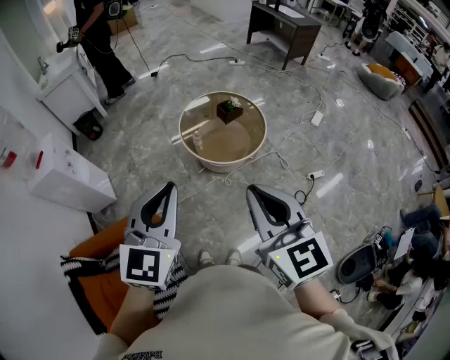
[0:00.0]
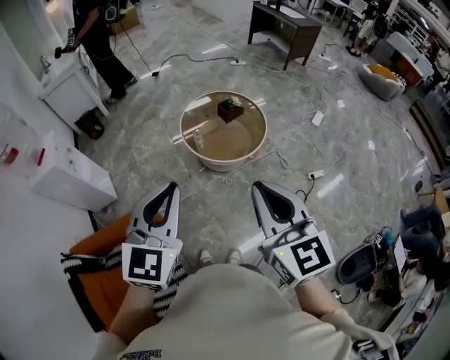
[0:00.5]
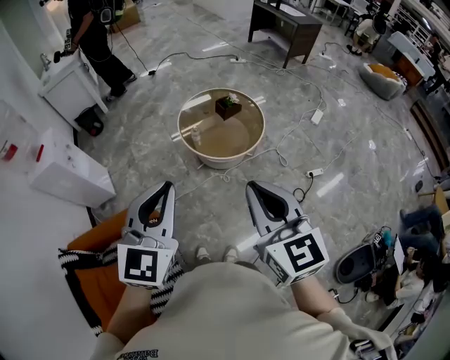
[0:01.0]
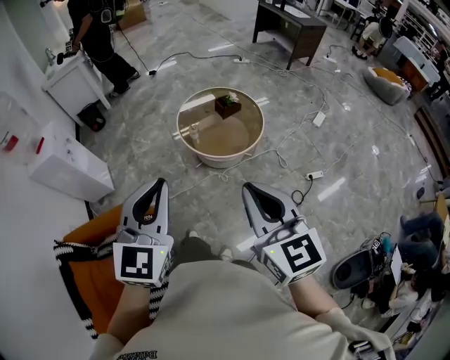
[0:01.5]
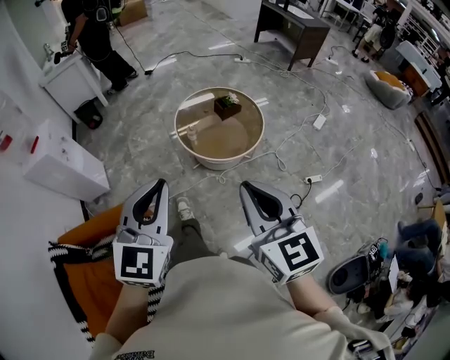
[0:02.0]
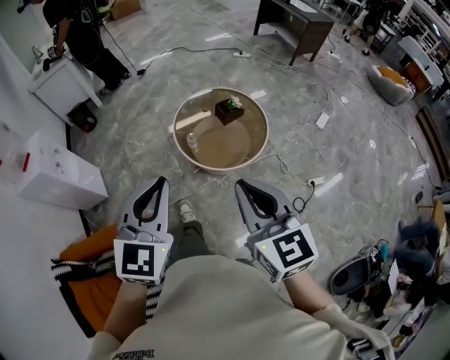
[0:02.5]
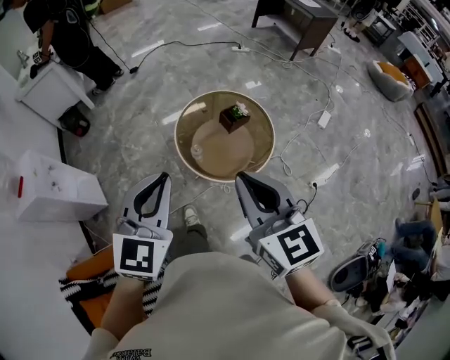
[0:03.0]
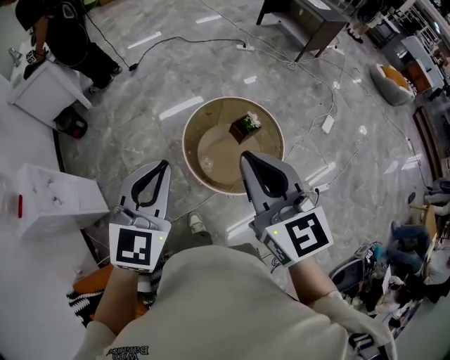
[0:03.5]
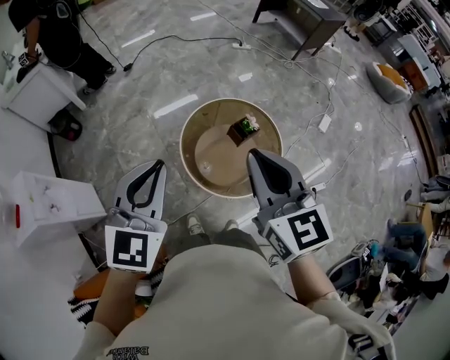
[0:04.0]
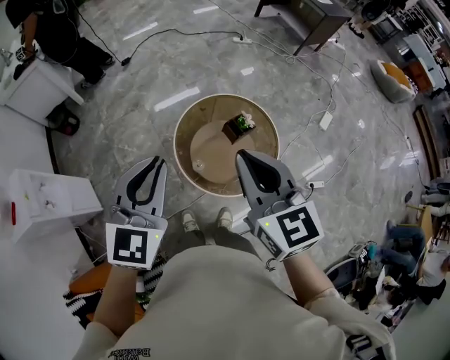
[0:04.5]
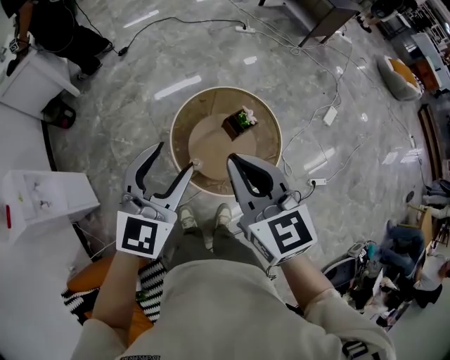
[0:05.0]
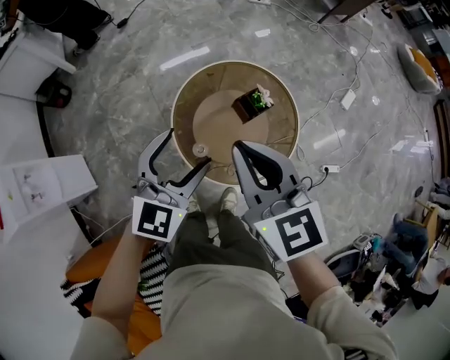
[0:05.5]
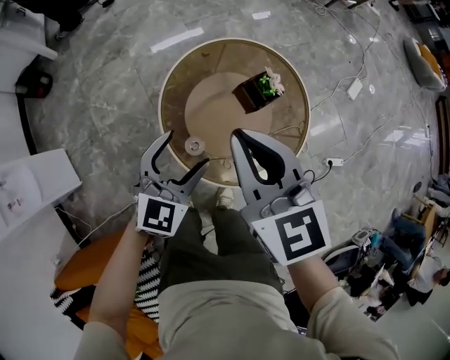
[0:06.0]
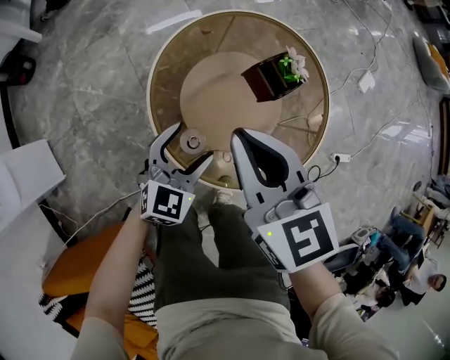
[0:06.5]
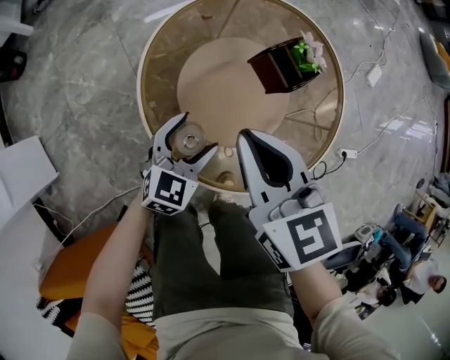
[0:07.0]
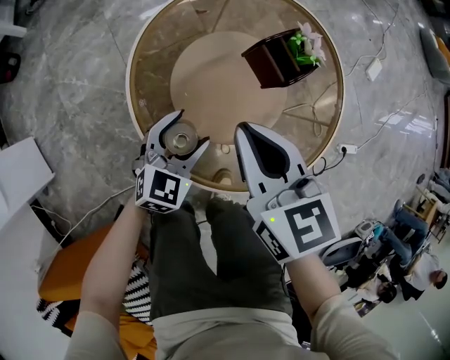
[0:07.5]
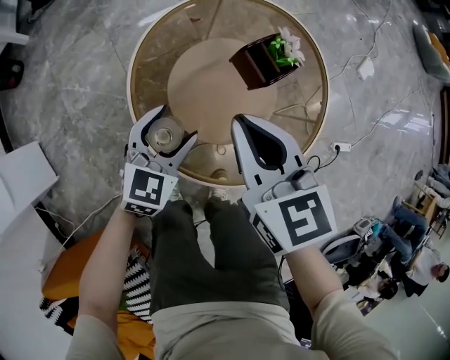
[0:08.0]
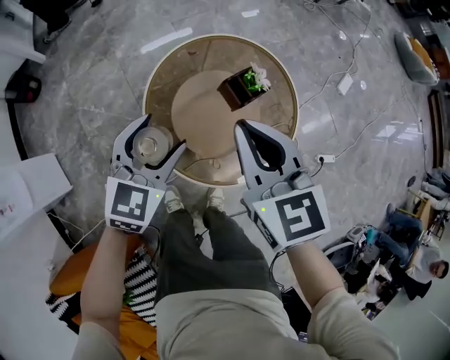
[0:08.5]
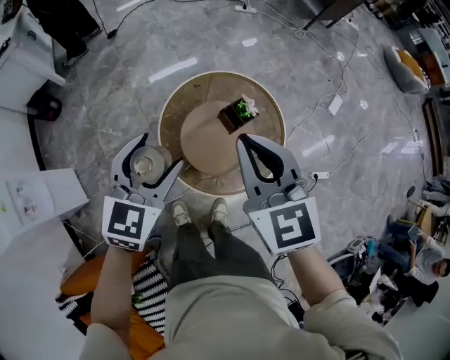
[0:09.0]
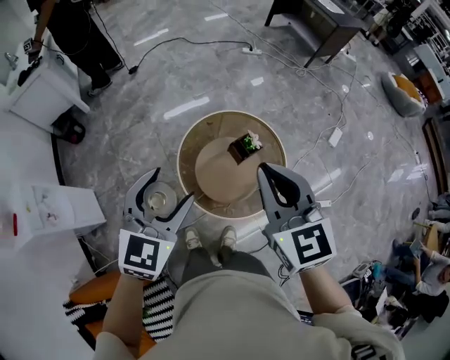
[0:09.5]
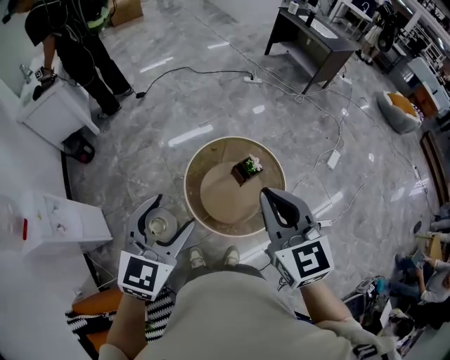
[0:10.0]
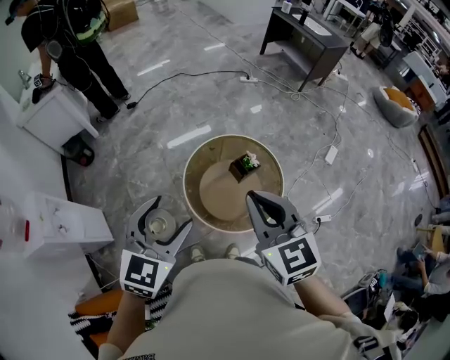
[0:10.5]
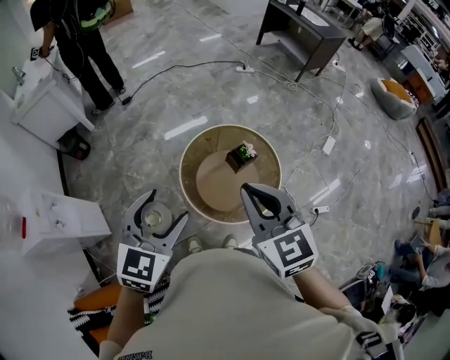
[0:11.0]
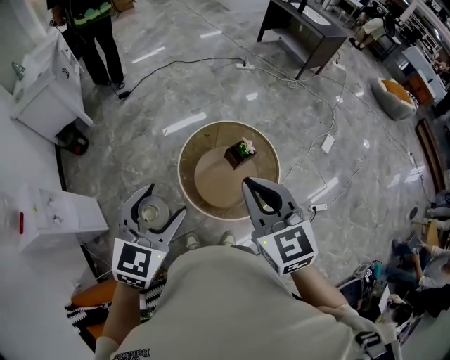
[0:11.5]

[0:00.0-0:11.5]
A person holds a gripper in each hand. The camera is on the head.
0:00.0 to 0:02.0: The left gripper changes place by about 5 cm. Meanwhile the right gripper heads to the right, covering about 5 cm.
0:02.0 to 0:04.0: Both grippers are carried forward, some 50 cm.
0:04.0 to 0:06.0: The right gripper travels downward and forward by about 35 cm, while the left gripper shifts roughly 40 cm downward, and opens.
0:06.0 to 0:07.5: Both grippers move downward, about 25 cm.
0:07.5 to 0:09.5: The two grippers go approximately 50 cm upward. The right gripper swivels roughly 20 degrees.
0:09.5 to 0:11.5: The grippers both shift backward by some 10 cm.

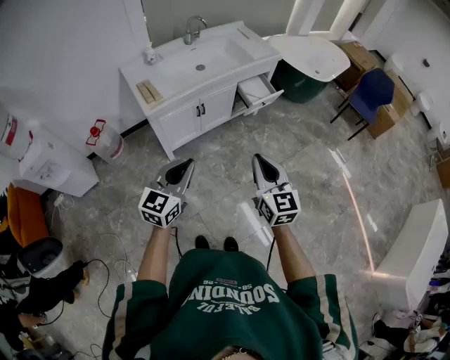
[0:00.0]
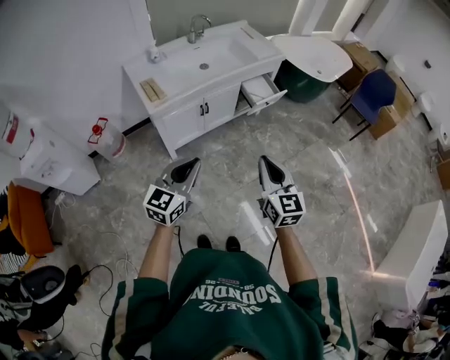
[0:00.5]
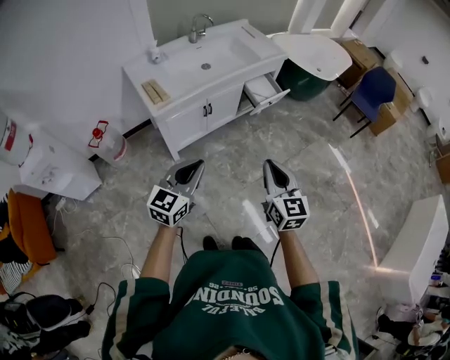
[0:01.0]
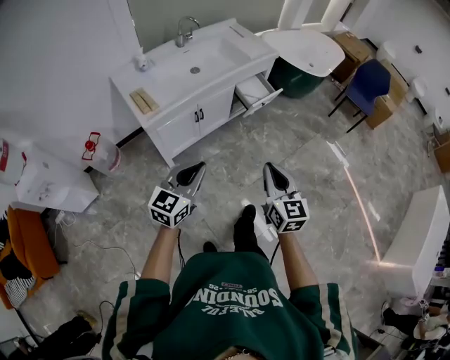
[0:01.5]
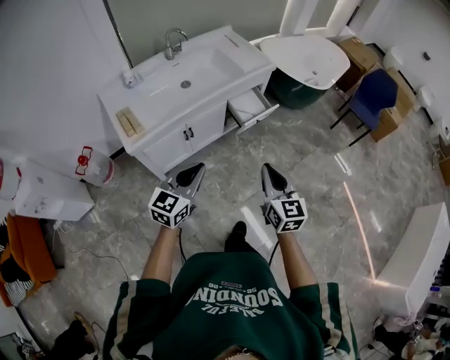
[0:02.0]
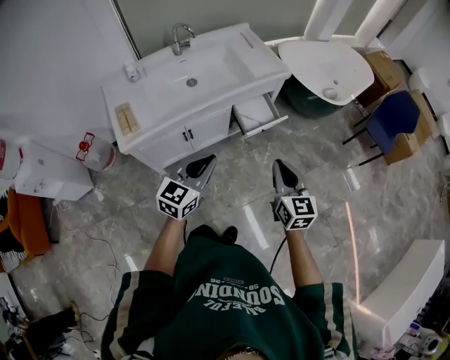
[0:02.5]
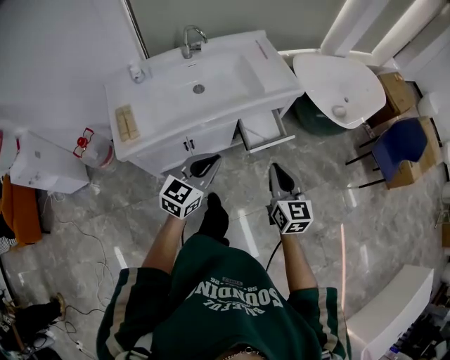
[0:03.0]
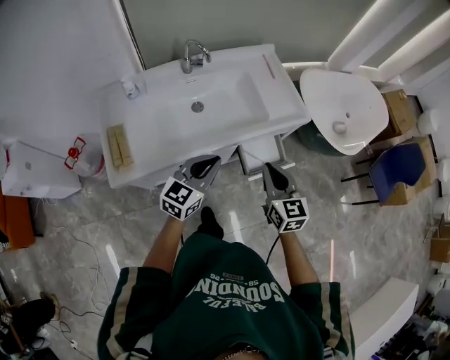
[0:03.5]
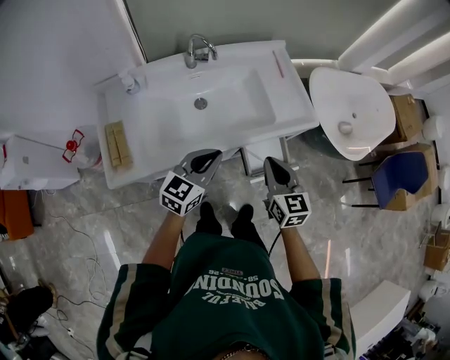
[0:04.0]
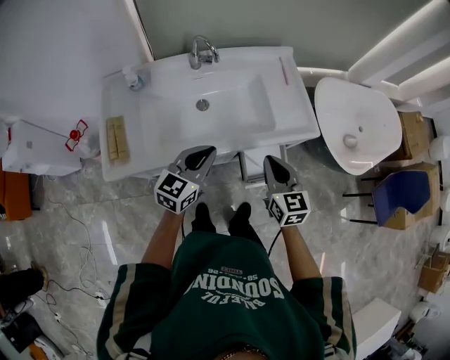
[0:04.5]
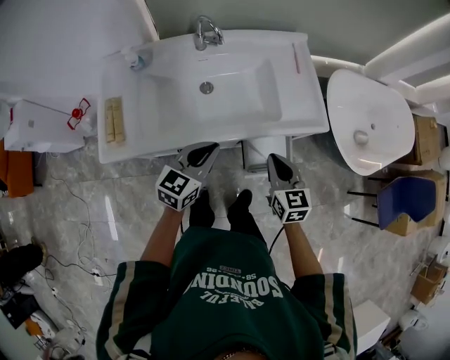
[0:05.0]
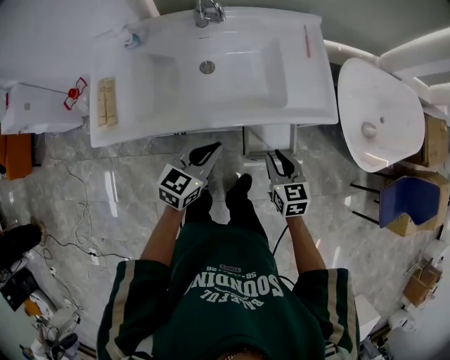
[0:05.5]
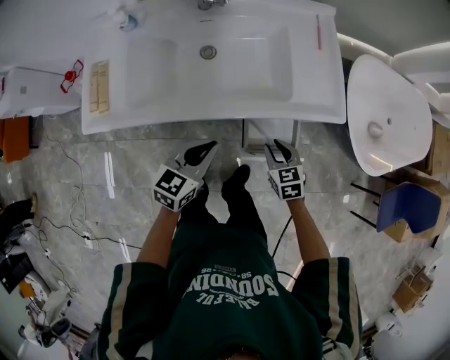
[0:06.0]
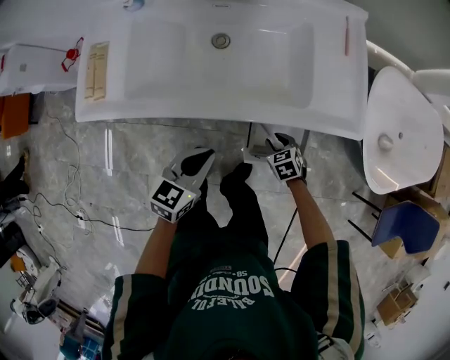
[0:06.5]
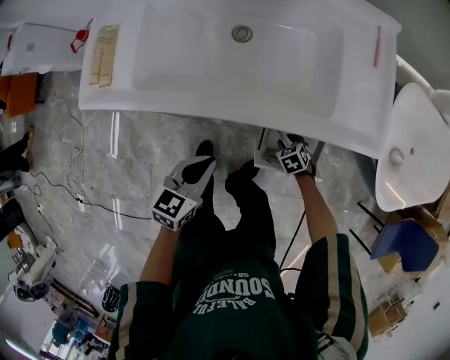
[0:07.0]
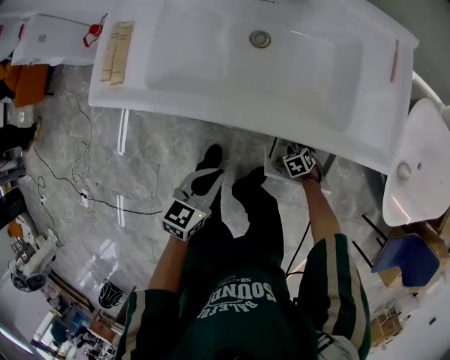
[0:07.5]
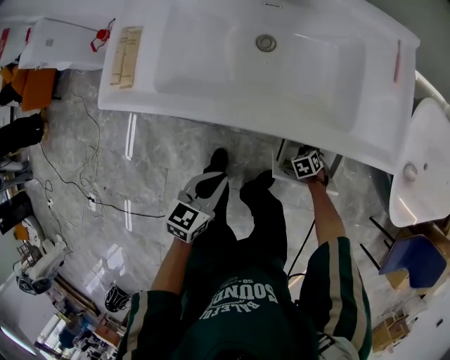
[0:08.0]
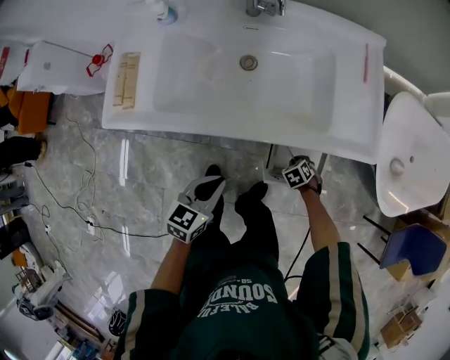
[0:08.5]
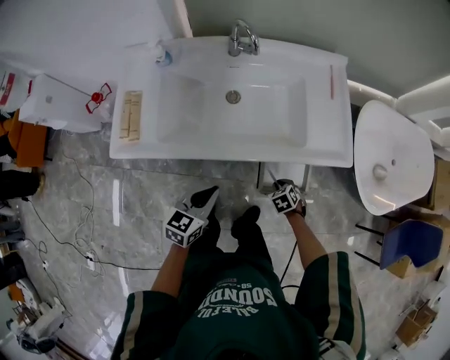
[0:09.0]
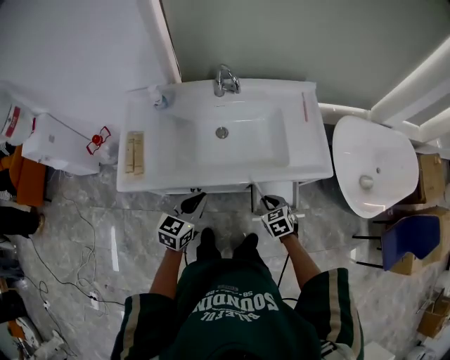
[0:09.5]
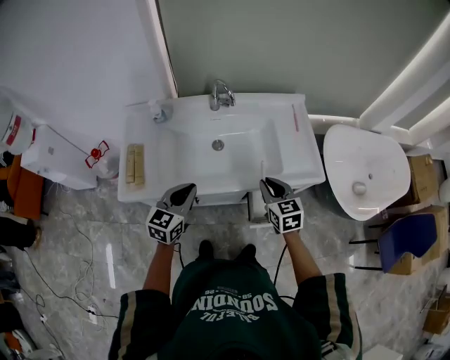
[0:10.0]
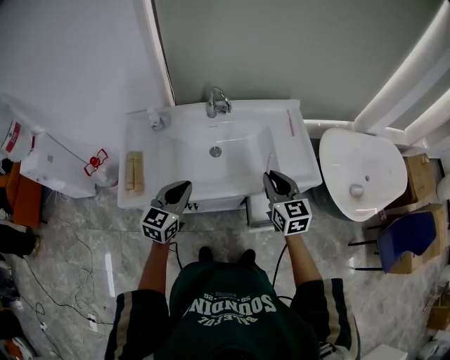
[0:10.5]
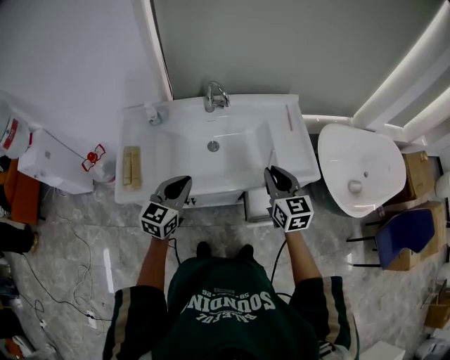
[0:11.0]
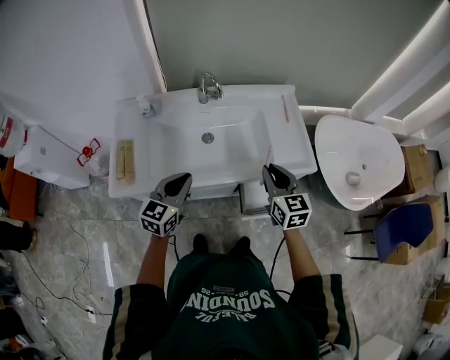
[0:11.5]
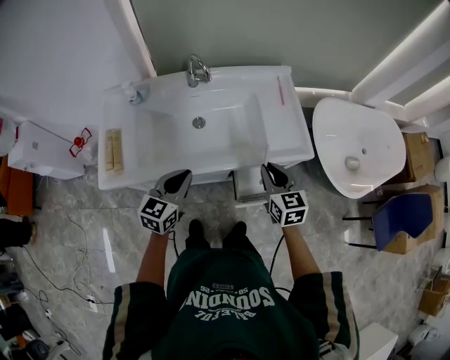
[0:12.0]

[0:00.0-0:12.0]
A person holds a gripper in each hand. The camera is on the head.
0:00.0 to 0:02.0: Both grippers move forward, approximately 20 cm.
0:02.0 to 0:04.0: The two grippers travel together, forward, approximately 40 cm. The right gripper rotates about 20 degrees.
0:04.0 to 0:06.0: The right gripper travels downward by some 25 cm, swivels about 40 degrees, and opens up; the left gripper goes roughly 15 cm downward and to the right, and turns by about 20 degrees.
0:06.0 to 0:08.0: The left gripper goes some 10 cm downward, while the right gripper goes about 30 cm downward, and points its fingers approximately 30 degrees further downward.
0:08.0 to 0:10.0: The right gripper is displaced upward by approximately 50 cm, and angles its fingers upward, by about 50 degrees, while the left gripper goes some 20 cm upward, and swivels approximately 30 degrees.
0:10.0 to 0:12.0: Both grippers travel together to the right, approximately 5 cm. The right gripper travels upward and back again, about 10 cm each way.

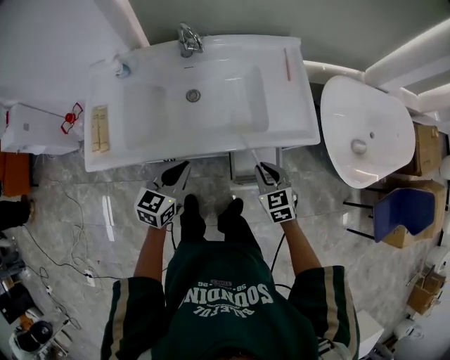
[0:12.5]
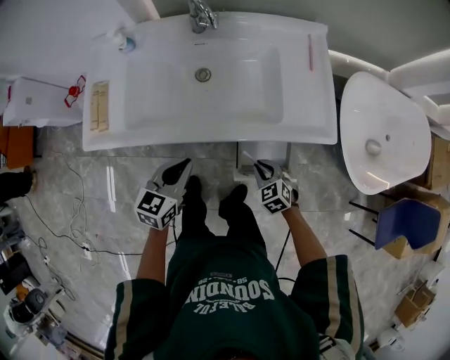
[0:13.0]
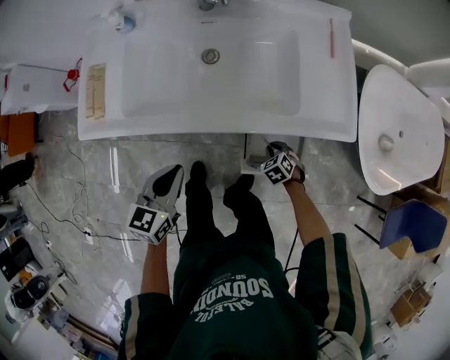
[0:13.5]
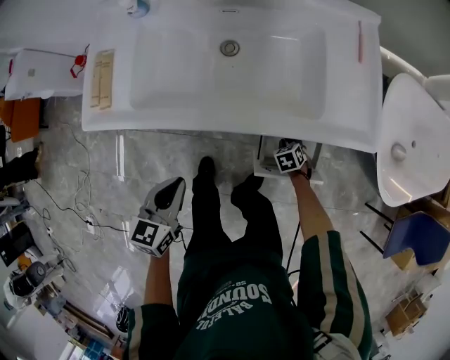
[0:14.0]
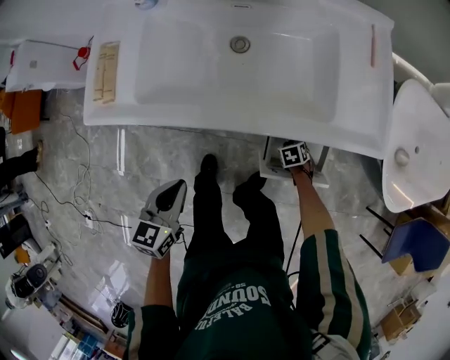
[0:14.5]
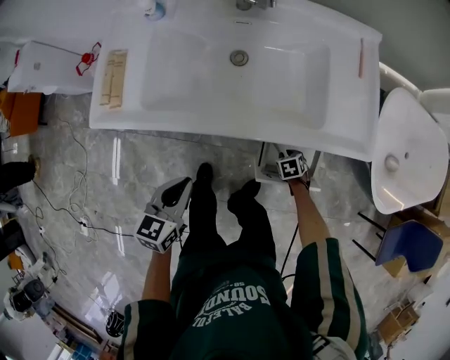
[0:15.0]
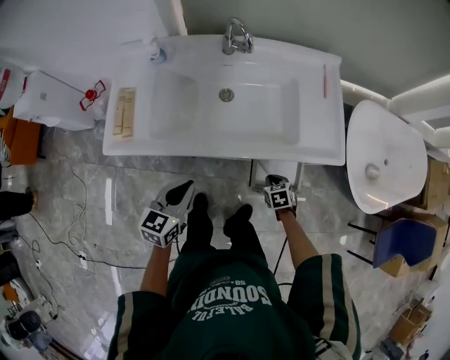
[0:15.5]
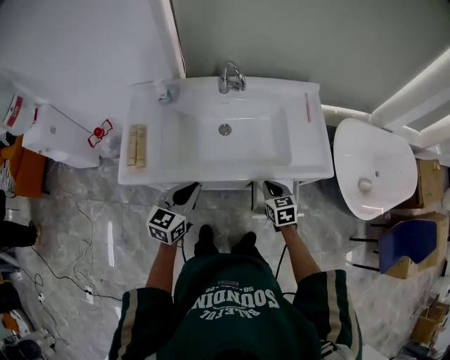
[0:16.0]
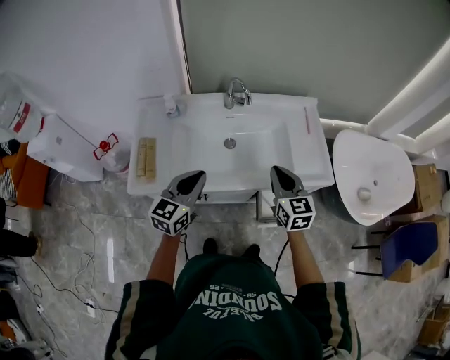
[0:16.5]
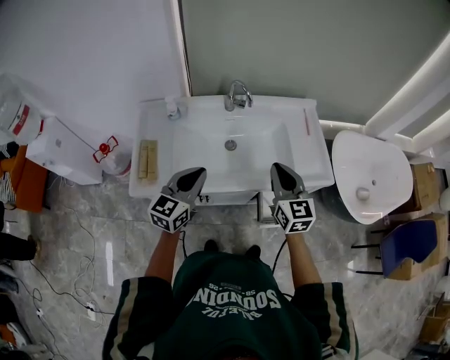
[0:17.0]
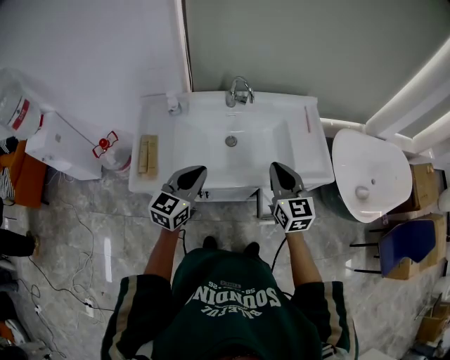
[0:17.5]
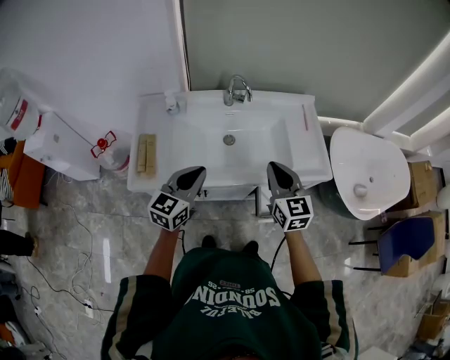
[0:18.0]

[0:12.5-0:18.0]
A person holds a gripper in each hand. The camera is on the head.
0:12.5 to 0:14.5: The left gripper moves roughly 15 cm, and changes its angle by about 20 degrees. The right gripper moves downward, some 40 cm, and points its fingers approximately 40 degrees further downward.
0:14.5 to 0:16.0: The left gripper goes approximately 15 cm upward, and turns by roughly 20 degrees. Meanwhile the right gripper is displaced upward by some 40 cm, and tips its fingers upward by approximately 40 degrees.
0:16.0 to 0:18.0: The left gripper heads upward, covering roughly 5 cm; the right gripper is displaced upward by about 20 cm, and angles its fingers upward, by roughly 30 degrees.
